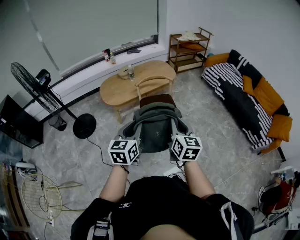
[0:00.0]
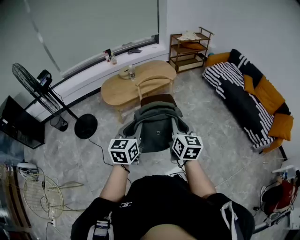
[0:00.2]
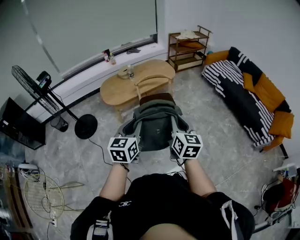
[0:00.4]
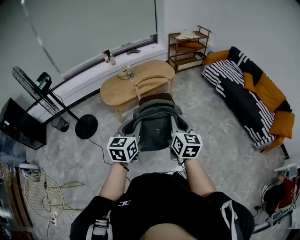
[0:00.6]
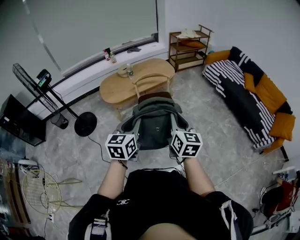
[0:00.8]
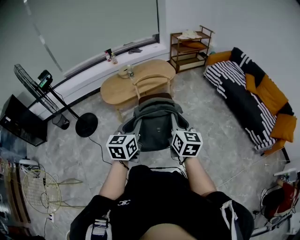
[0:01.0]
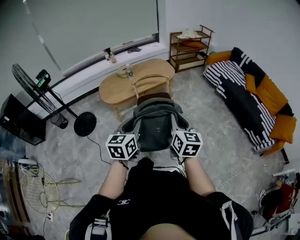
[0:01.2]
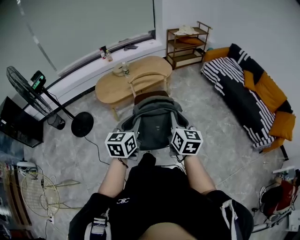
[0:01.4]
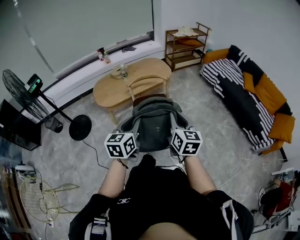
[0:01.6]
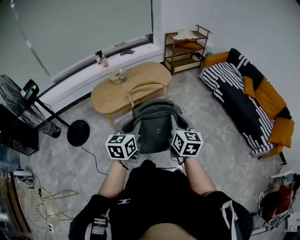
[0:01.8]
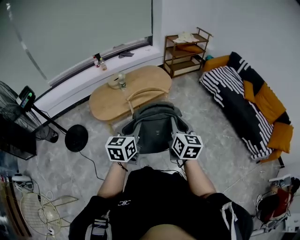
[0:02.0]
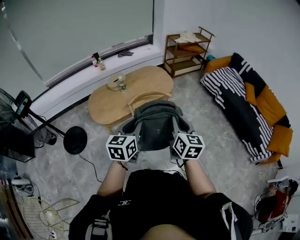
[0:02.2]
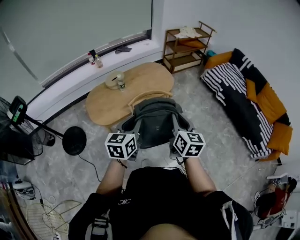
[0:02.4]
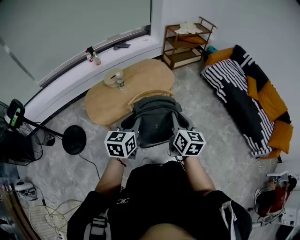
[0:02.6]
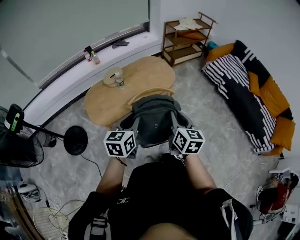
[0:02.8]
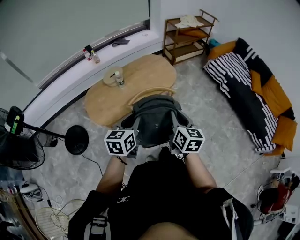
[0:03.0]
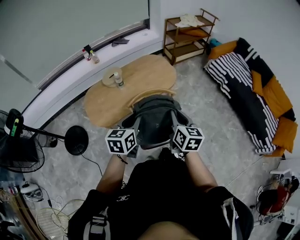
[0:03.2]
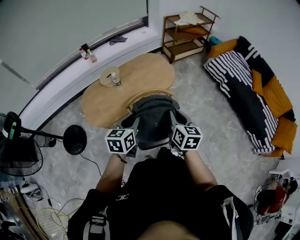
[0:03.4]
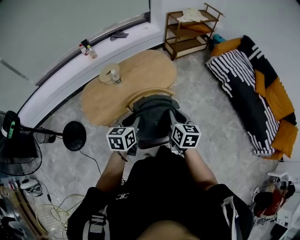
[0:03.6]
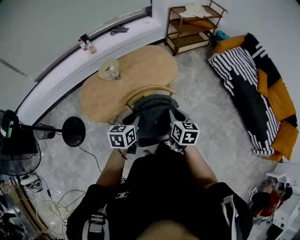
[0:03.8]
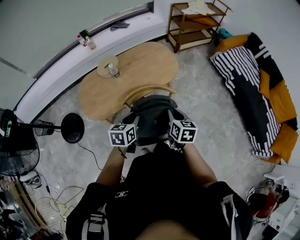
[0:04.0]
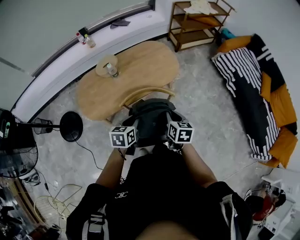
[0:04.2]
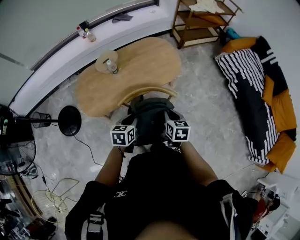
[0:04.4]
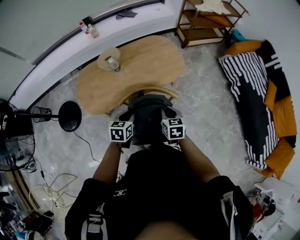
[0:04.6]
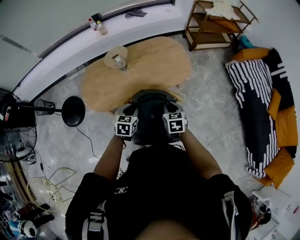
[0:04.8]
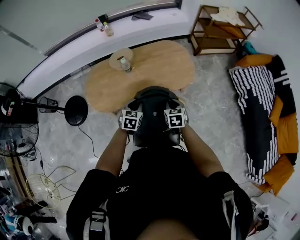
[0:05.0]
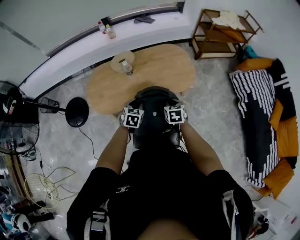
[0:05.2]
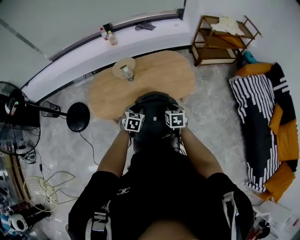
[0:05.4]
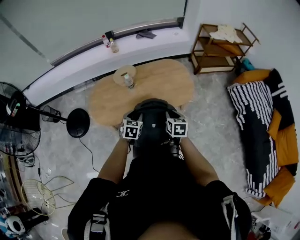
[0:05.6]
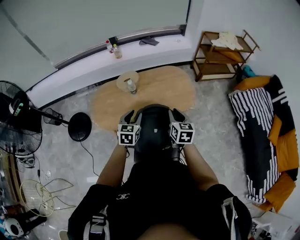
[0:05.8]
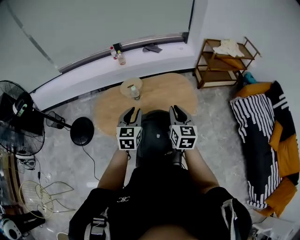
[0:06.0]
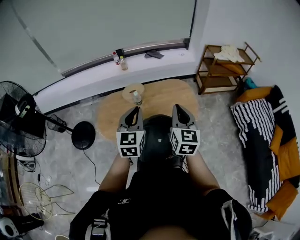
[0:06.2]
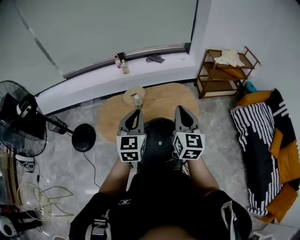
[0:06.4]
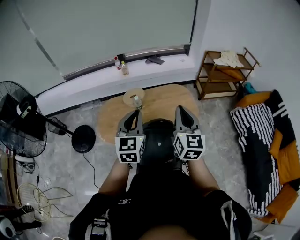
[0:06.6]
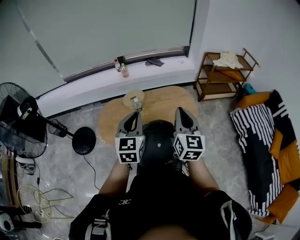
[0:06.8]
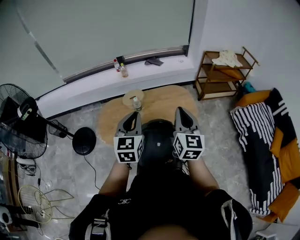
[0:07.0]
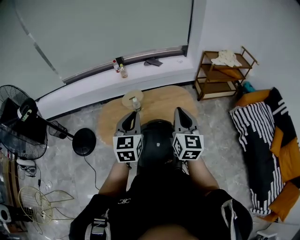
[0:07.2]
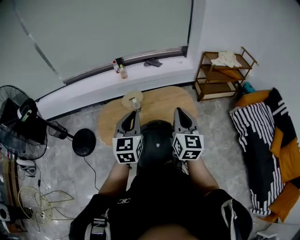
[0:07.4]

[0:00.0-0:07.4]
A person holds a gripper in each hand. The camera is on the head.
0:00.0 to 0:01.4: The grippers both shift to the right and forward by some 10 cm.
0:01.4 to 0:03.0: The two grippers travel together, forward, roughly 50 cm.
0:03.0 to 0:04.4: The right gripper goes about 30 cm forward and downward, and turns by some 30 degrees. The left gripper shifts about 25 cm downward and forward, and turns by roughly 20 degrees.
0:04.4 to 0:06.0: Both grippers travel together upward and forward, about 20 cm. The right gripper swivels approximately 30 degrees, while the left gripper swivels approximately 40 degrees.
0:06.0 to 0:07.4: The two grippers go approximately 10 cm upward.

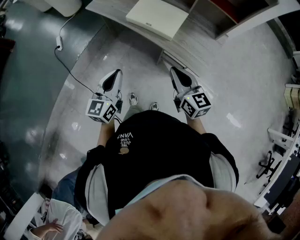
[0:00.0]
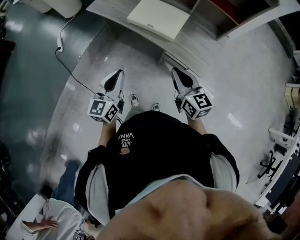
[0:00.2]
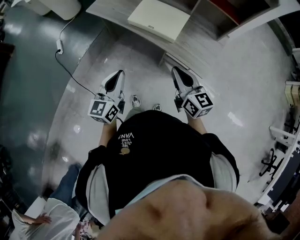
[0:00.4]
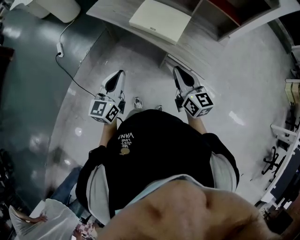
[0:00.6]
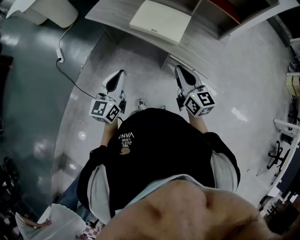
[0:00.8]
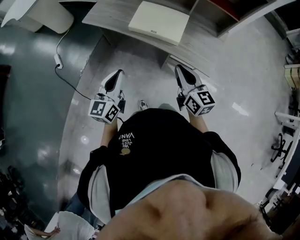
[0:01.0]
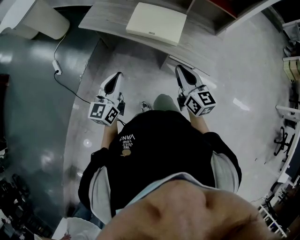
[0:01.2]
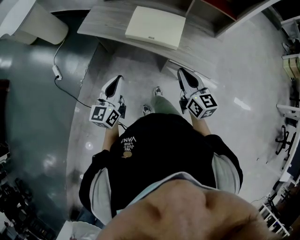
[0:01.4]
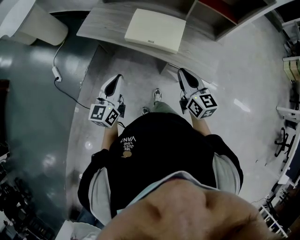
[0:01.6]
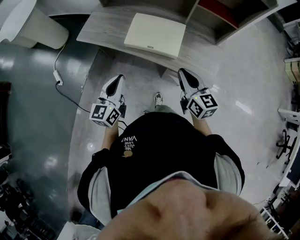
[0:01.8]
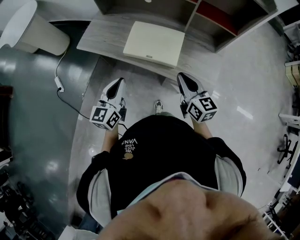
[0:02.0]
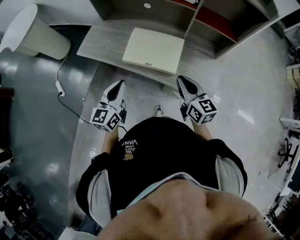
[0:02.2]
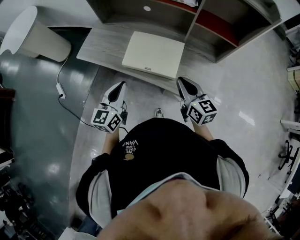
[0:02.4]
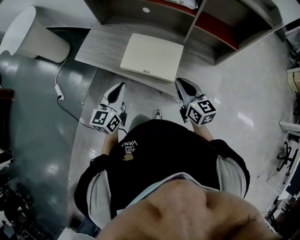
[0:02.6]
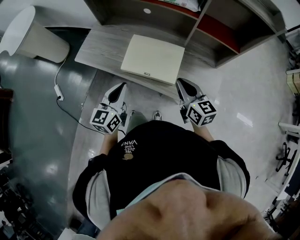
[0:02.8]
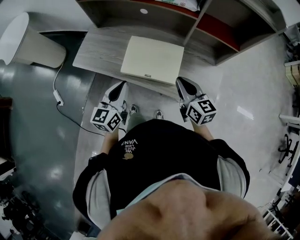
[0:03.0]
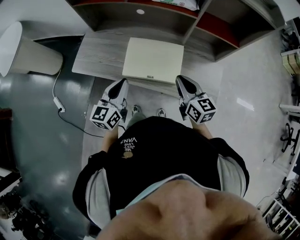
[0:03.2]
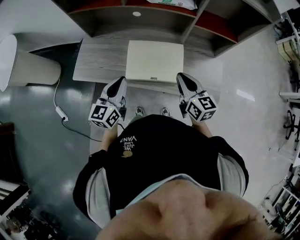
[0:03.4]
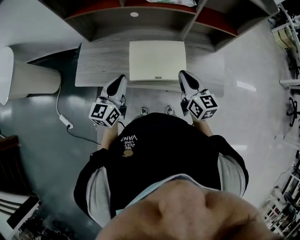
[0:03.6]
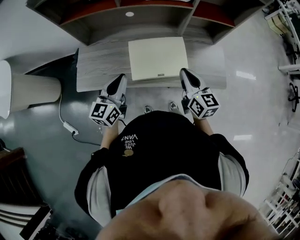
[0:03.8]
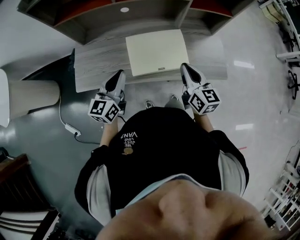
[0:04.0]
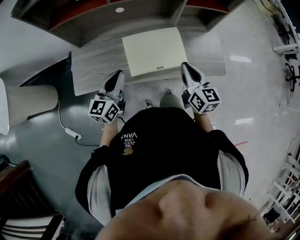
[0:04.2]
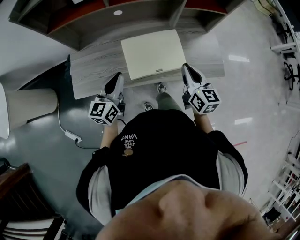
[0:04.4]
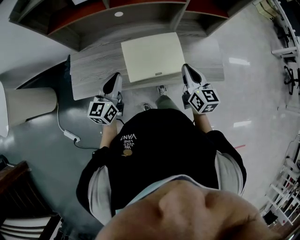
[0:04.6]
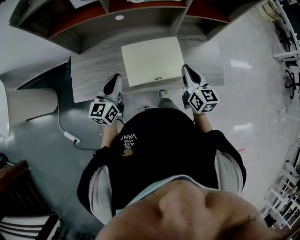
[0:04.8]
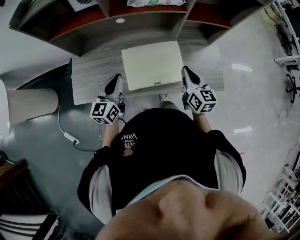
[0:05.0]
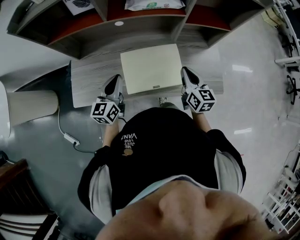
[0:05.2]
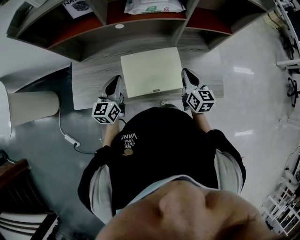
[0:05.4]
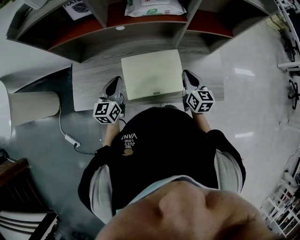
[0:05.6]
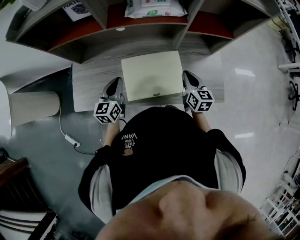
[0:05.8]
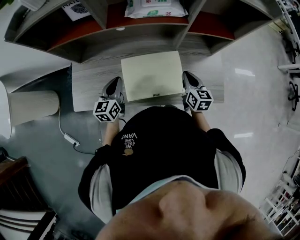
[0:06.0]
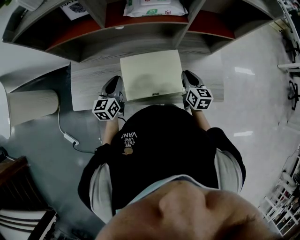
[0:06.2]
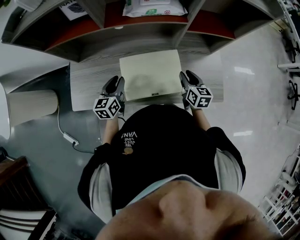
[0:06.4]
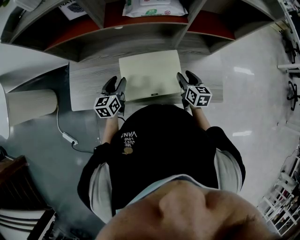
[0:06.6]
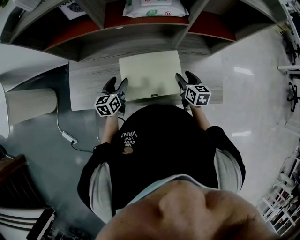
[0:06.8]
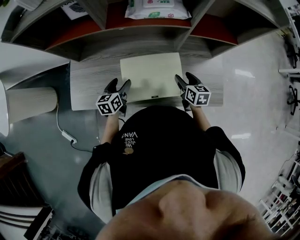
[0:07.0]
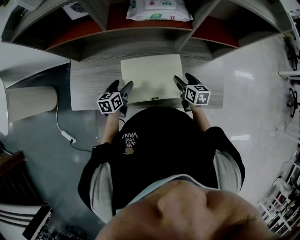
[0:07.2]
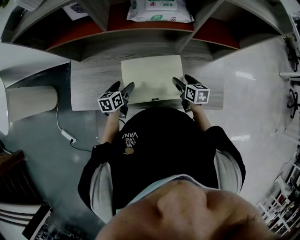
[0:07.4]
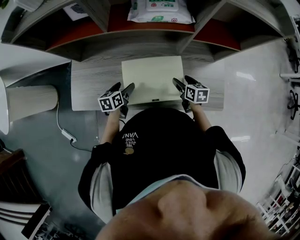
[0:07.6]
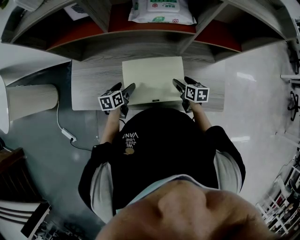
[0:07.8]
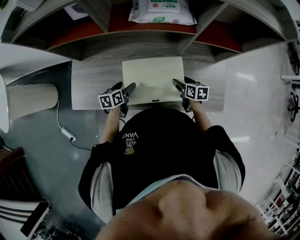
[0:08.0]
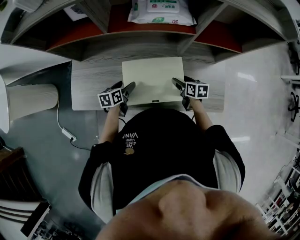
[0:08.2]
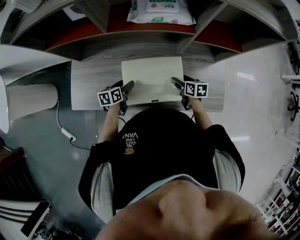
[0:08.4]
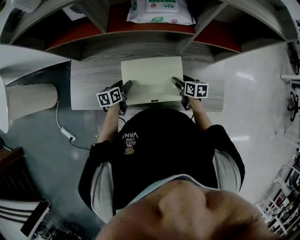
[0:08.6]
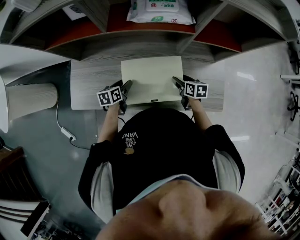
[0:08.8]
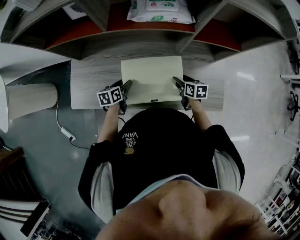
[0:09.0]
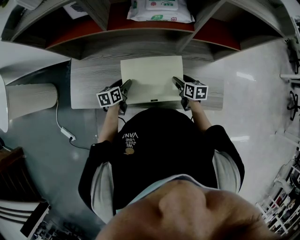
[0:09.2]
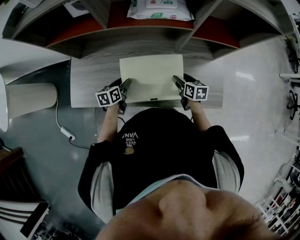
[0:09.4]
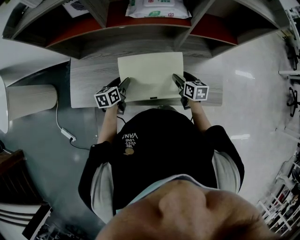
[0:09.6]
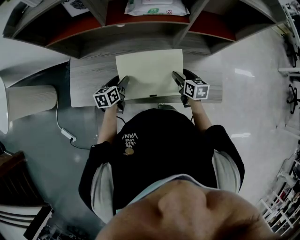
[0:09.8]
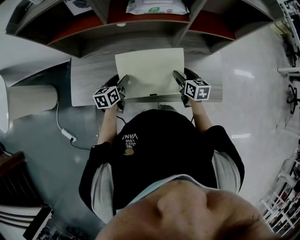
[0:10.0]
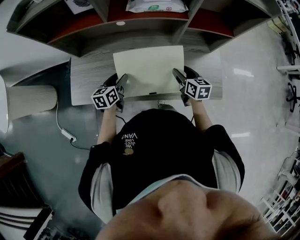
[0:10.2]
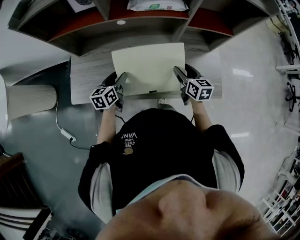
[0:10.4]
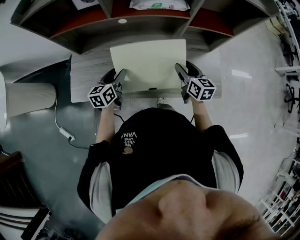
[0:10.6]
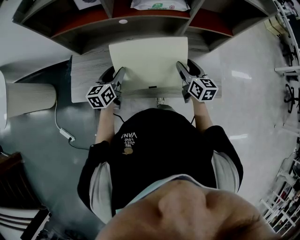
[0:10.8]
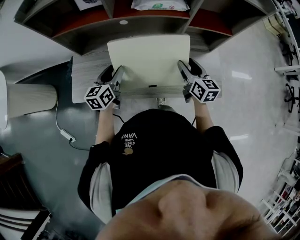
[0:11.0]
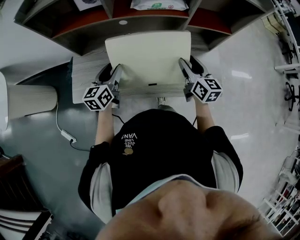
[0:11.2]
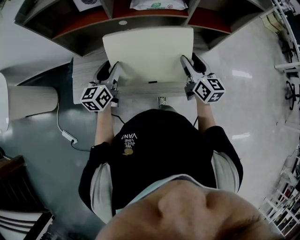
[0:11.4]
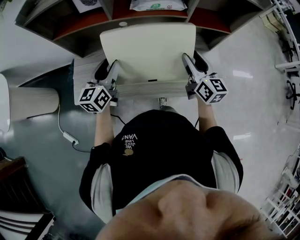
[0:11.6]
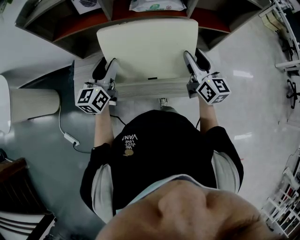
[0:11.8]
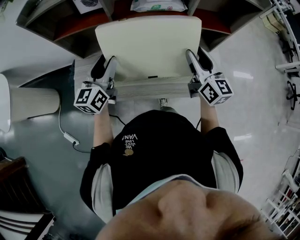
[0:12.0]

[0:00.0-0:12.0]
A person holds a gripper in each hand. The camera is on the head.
0:00.0 to 0:01.6: The left gripper heads forward and to the left, covering about 15 cm. Meanwhile the right gripper travels forward by roughly 10 cm.
0:01.6 to 0:03.0: Both grippers travel together forward, approximately 15 cm.
0:03.0 to 0:04.4: The left gripper changes place by some 15 cm, and rotates roughly 20 degrees, while the right gripper rotates about 30 degrees.
0:04.4 to 0:06.0: The grippers both shift forward and downward by roughly 15 cm.
0:06.0 to 0:07.6: Both grippers travel together downward, some 10 cm. The left gripper swivels roughly 30 degrees, and opens its fingers. The right gripper turns by roughly 20 degrees, and opens.
0:07.6 to 0:09.0: The left gripper closes.
0:09.0 to 0:10.4: Both grippers travel together upward, some 10 cm. The right gripper swivels approximately 20 degrees.
0:10.4 to 0:12.0: Both grippers travel together upward, approximately 20 cm. The left gripper rotates roughly 30 degrees; the right gripper rotates some 30 degrees.

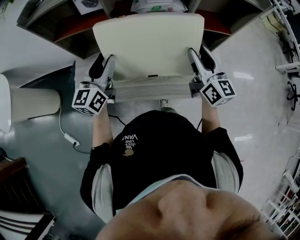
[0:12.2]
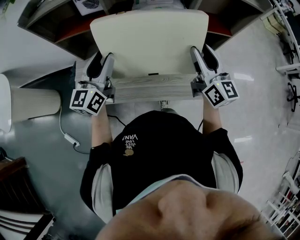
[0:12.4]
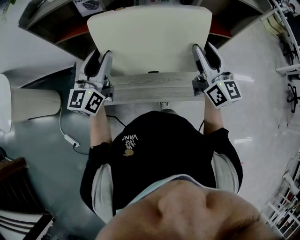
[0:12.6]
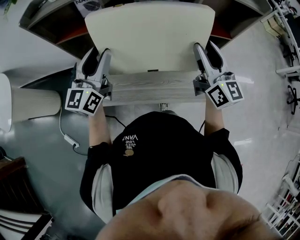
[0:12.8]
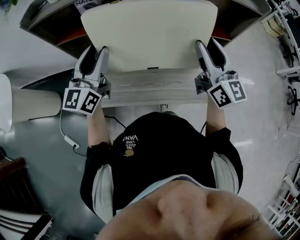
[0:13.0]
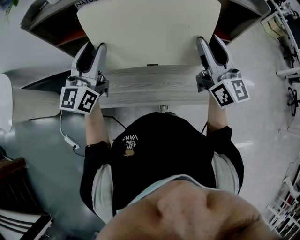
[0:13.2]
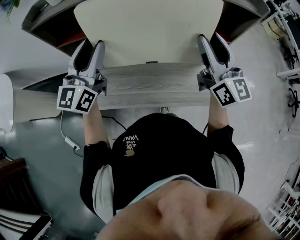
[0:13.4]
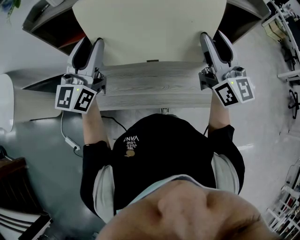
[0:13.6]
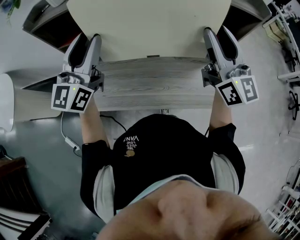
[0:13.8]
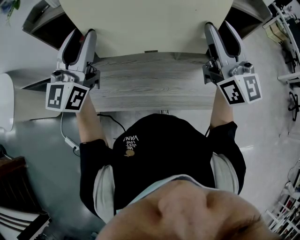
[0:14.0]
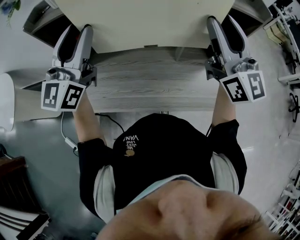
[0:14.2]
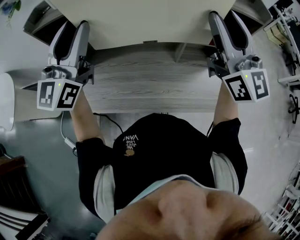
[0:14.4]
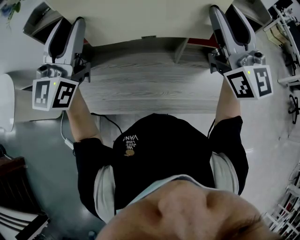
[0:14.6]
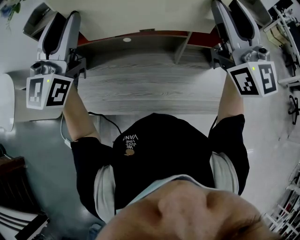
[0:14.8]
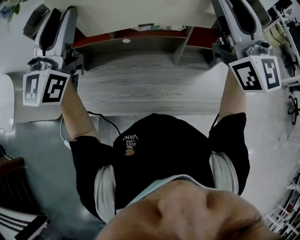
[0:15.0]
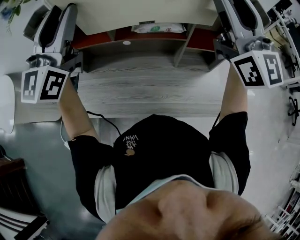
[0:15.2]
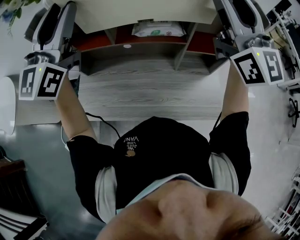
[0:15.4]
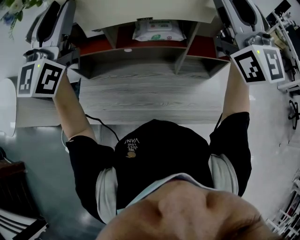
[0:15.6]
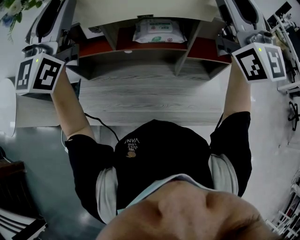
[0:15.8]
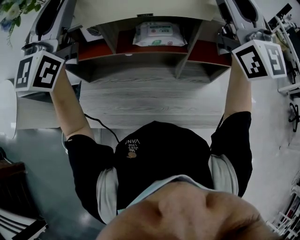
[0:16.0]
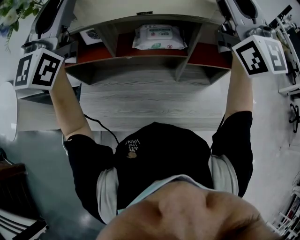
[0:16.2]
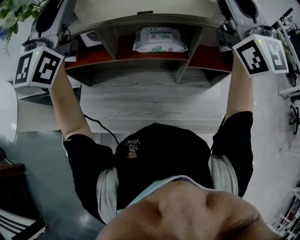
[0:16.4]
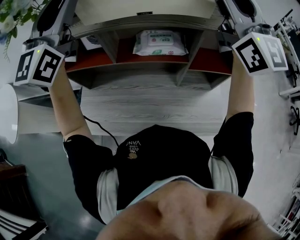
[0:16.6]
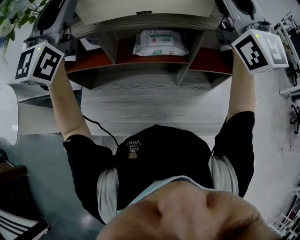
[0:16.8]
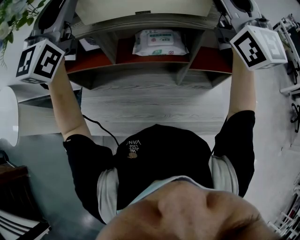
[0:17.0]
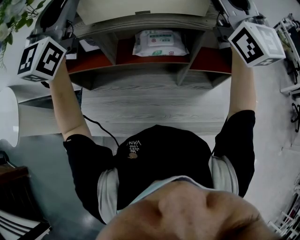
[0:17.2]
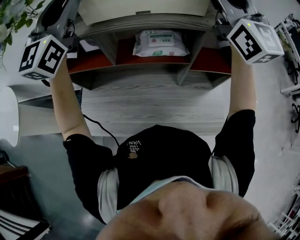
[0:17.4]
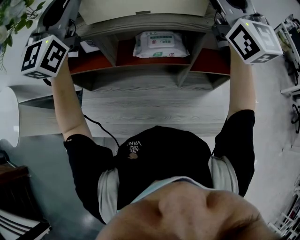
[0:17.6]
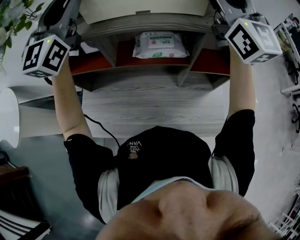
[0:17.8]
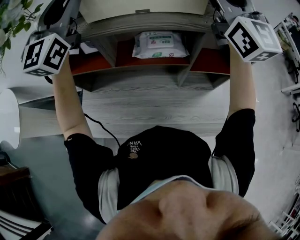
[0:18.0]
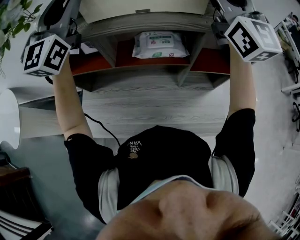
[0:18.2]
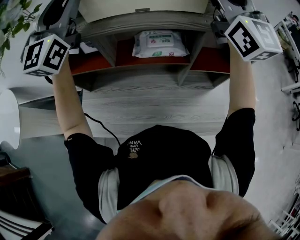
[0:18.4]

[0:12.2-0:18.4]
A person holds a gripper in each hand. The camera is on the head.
0:12.2 to 0:13.8: The grippers both shift upward by approximately 20 cm. The right gripper swivels some 20 degrees. The left gripper changes its angle by roughly 20 degrees.
0:13.8 to 0:15.4: The two grippers go some 15 cm upward.
0:15.4 to 0:16.8: Both grippers move forward, approximately 10 cm.
0:16.8 to 0:18.4: The grippers make only small movements.
